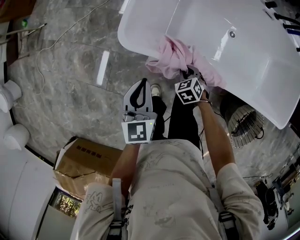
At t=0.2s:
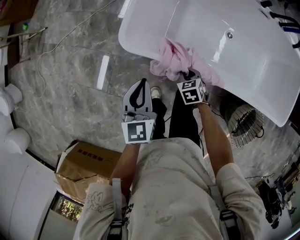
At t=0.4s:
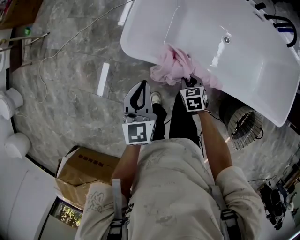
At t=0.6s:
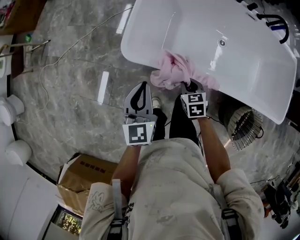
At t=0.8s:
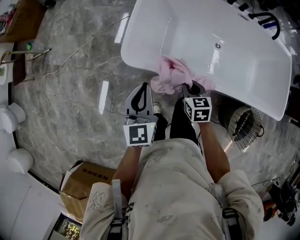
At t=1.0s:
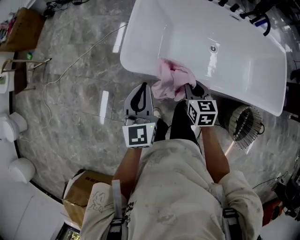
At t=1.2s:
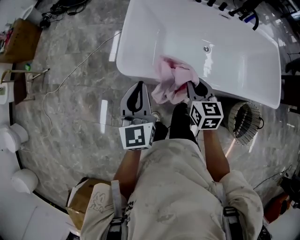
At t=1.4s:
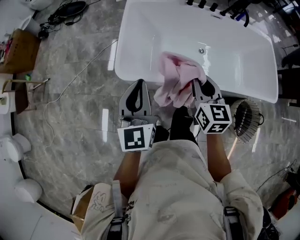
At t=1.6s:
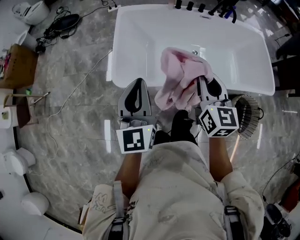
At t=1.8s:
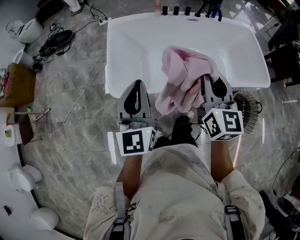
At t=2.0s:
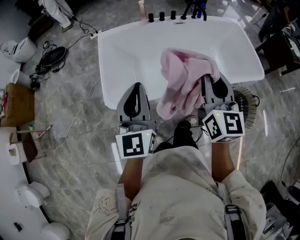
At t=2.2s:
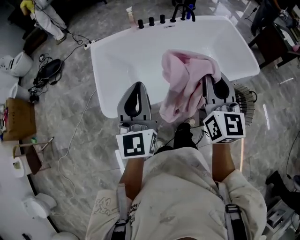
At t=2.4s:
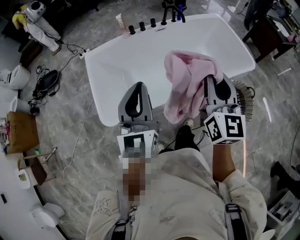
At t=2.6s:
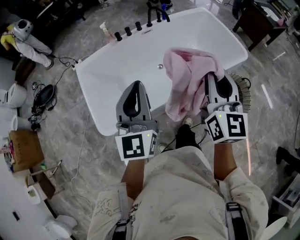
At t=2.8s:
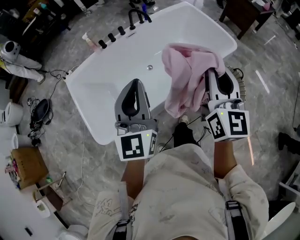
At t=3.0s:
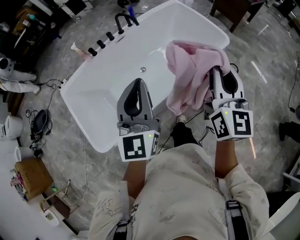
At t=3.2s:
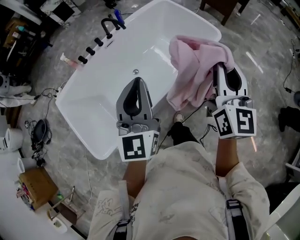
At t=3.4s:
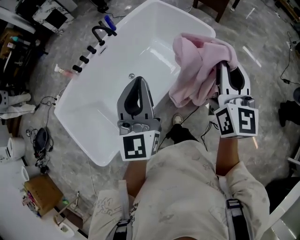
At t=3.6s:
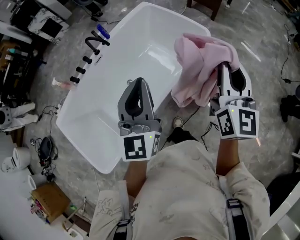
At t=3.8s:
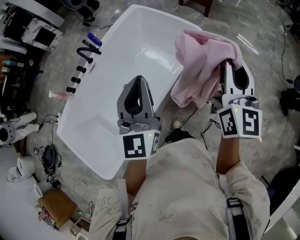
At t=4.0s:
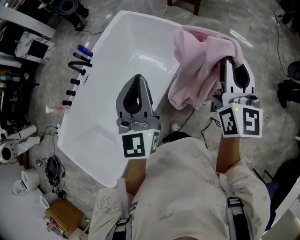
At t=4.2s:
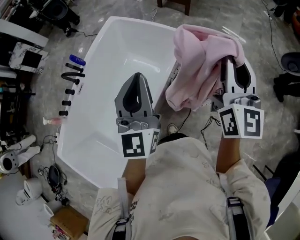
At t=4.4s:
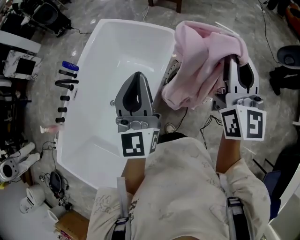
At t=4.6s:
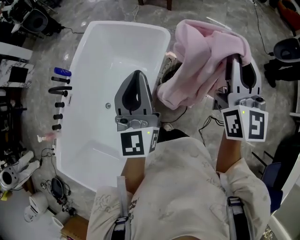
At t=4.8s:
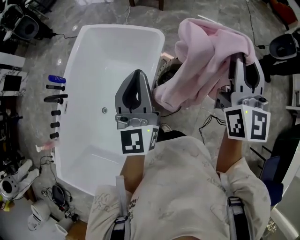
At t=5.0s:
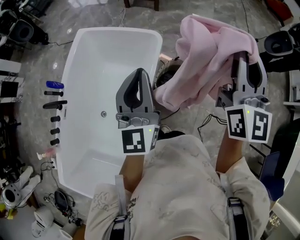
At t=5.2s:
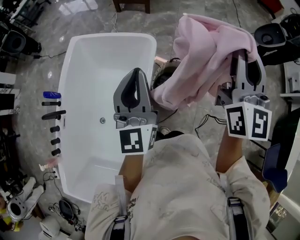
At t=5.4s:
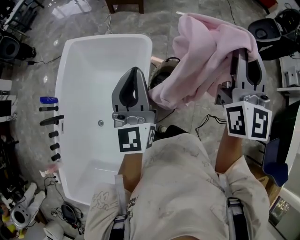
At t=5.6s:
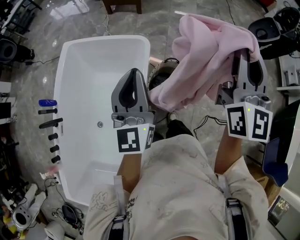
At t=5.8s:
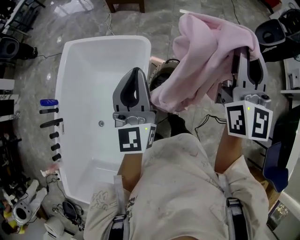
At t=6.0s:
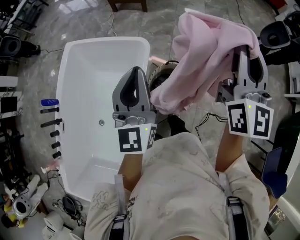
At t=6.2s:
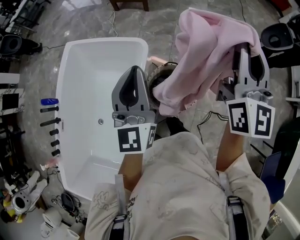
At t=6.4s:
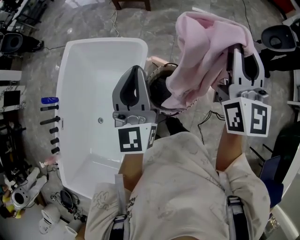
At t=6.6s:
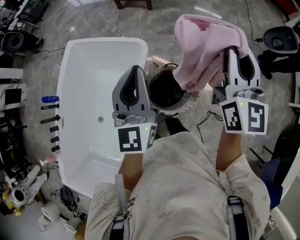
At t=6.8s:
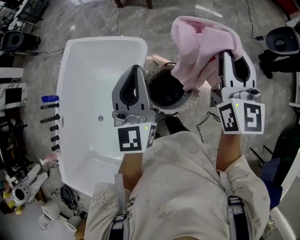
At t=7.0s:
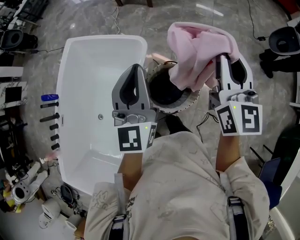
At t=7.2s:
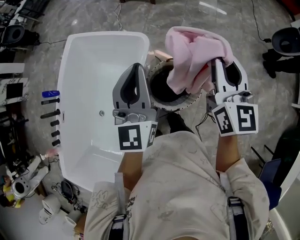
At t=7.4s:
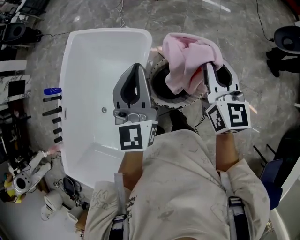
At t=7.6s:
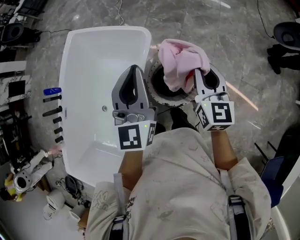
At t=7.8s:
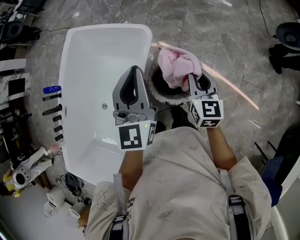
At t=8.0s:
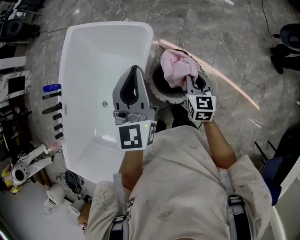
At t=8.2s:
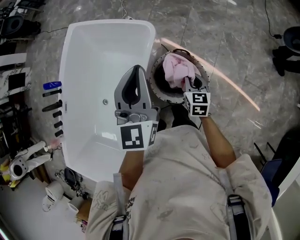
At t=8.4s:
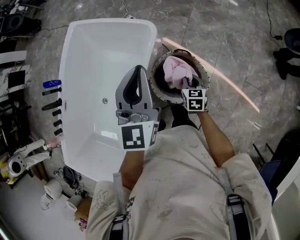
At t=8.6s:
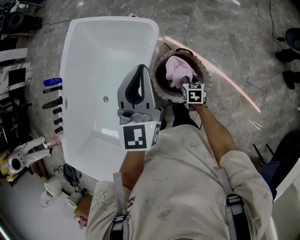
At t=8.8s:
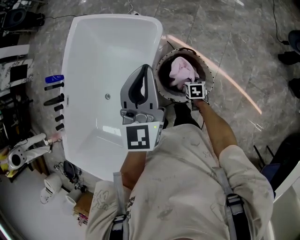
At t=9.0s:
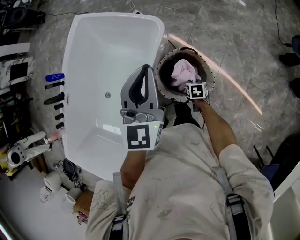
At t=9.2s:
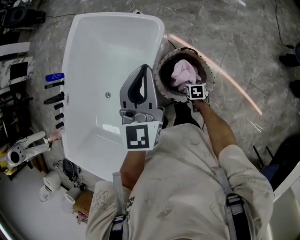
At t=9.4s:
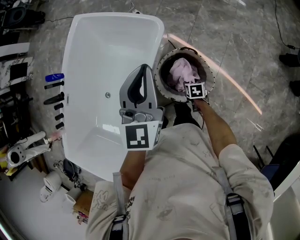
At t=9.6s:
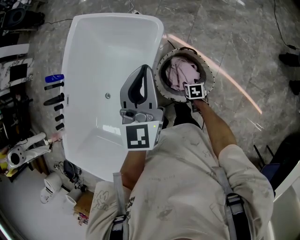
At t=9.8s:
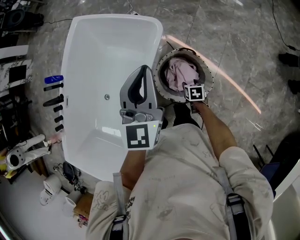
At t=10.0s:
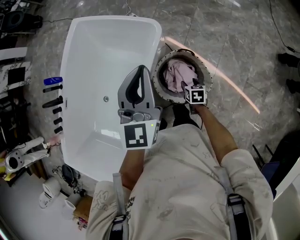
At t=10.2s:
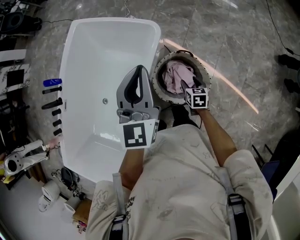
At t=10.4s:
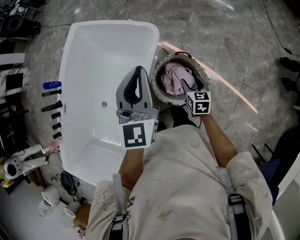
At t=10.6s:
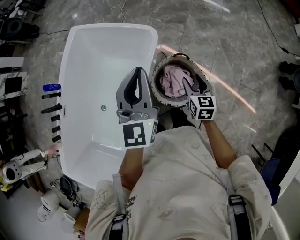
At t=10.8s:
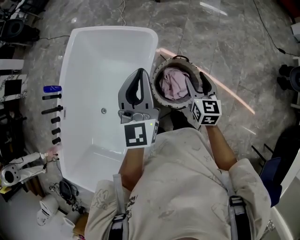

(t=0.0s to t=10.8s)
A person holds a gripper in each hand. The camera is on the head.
t=0.0s - t=1.6s: The left gripper is displaced upward by about 25 cm, and turns by some 30 degrees. Meanwhile the right gripper heads upward, covering roughly 50 cm, and tips its fingers upward by about 50 degrees.
t=1.6s - t=3.0s: The left gripper ends up roughly 35 cm from where it was, and changes its angle by approximately 40 degrees. The right gripper shifts by about 40 cm, and swivels about 50 degrees.
t=3.0s - t=4.6s: The left gripper moves about 40 cm, and changes its angle by some 30 degrees. The right gripper changes place by about 35 cm, and swivels about 30 degrees.
t=4.6s - t=6.2s: Both grippers travel together forward and to the right, approximately 15 cm.
t=6.2s - t=7.8s: The left gripper heads downward, covering roughly 5 cm; the right gripper moves downward, approximately 30 cm, and points its fingers approximately 30 degrees further downward.
t=7.8s - t=9.2s: The right gripper heads downward, covering about 35 cm, and tilts its fingers some 50 degrees downward.
t=9.2s - t=10.8s: The right gripper shifts some 30 cm upward, points its fingers roughly 40 degrees further upward, and opens, while the left gripper moves approximately 5 cm.

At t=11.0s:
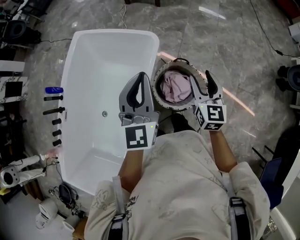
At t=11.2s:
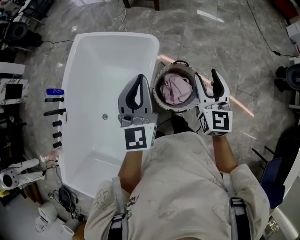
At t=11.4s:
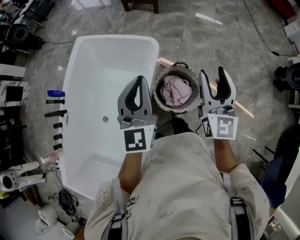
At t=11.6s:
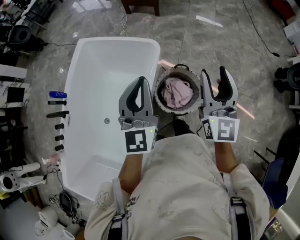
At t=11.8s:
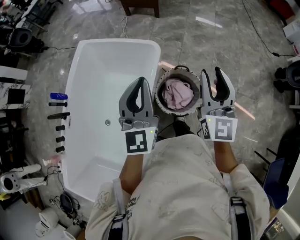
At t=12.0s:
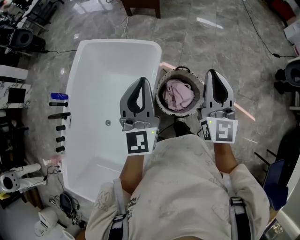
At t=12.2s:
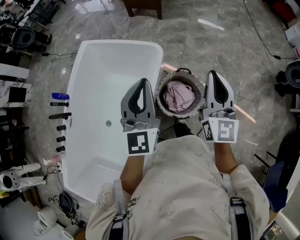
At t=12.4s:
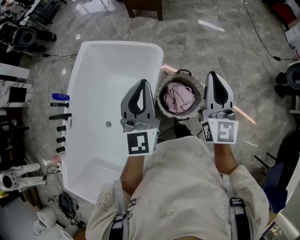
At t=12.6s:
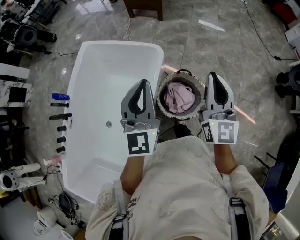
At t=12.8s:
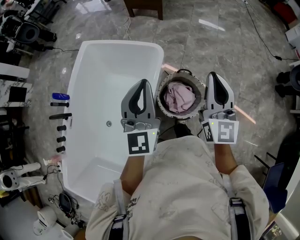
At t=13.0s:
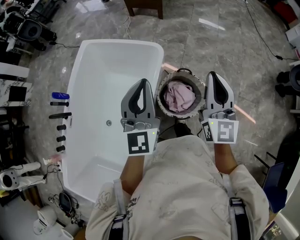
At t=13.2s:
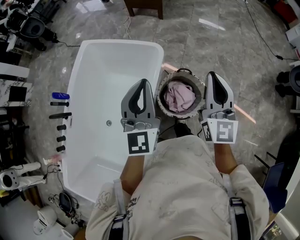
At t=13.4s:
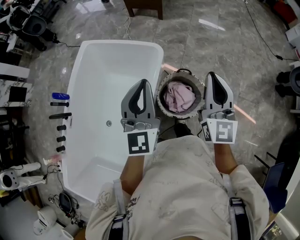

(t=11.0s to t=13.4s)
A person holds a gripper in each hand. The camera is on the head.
t=11.0s - t=12.2s: The right gripper moves upward, roughly 15 cm, changes its angle by approximately 20 degrees, and closes.
t=12.2s - t=13.4s: Both grippers stay put.

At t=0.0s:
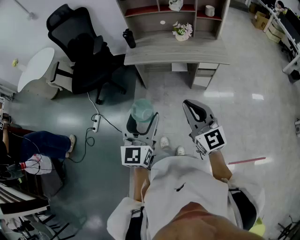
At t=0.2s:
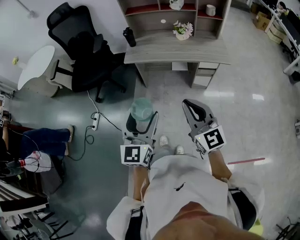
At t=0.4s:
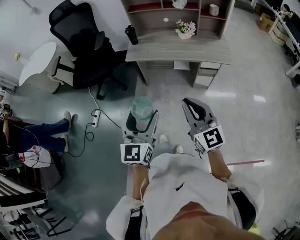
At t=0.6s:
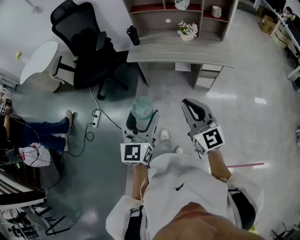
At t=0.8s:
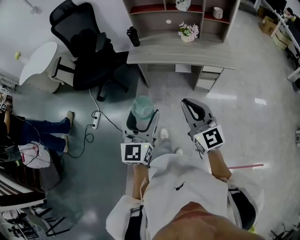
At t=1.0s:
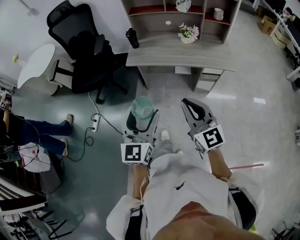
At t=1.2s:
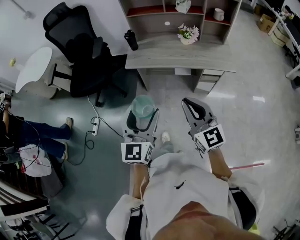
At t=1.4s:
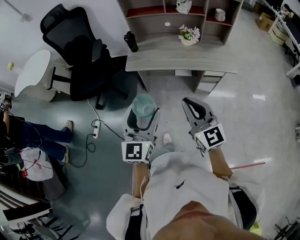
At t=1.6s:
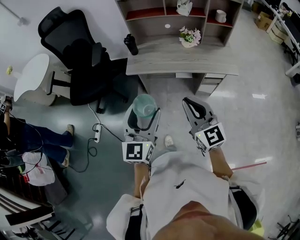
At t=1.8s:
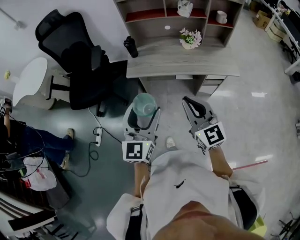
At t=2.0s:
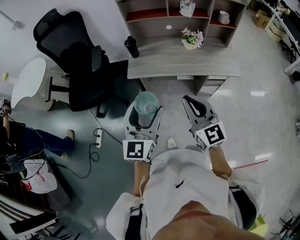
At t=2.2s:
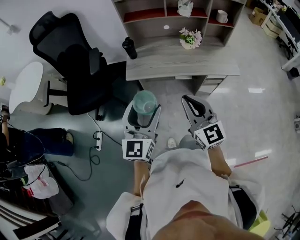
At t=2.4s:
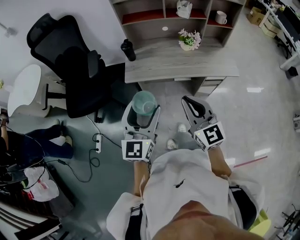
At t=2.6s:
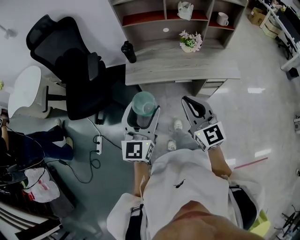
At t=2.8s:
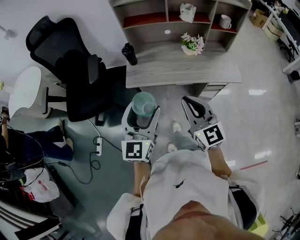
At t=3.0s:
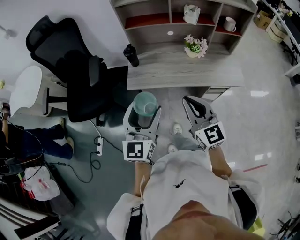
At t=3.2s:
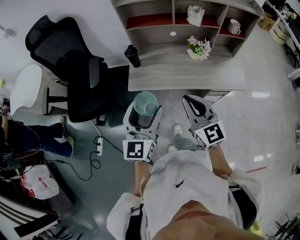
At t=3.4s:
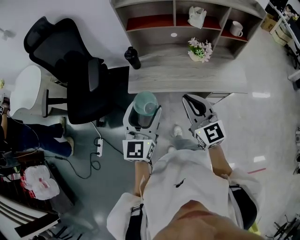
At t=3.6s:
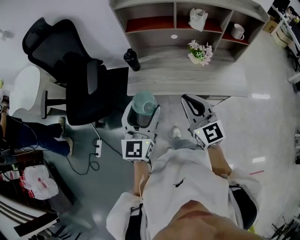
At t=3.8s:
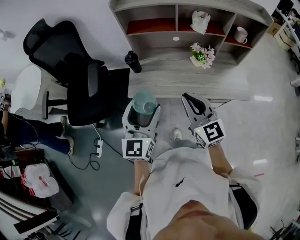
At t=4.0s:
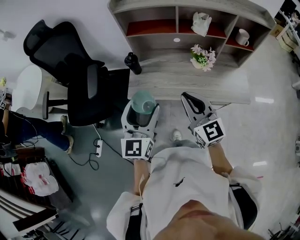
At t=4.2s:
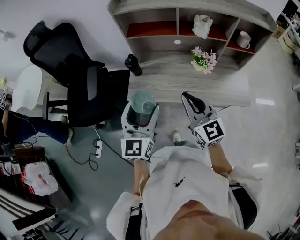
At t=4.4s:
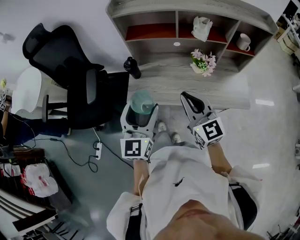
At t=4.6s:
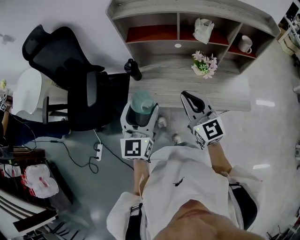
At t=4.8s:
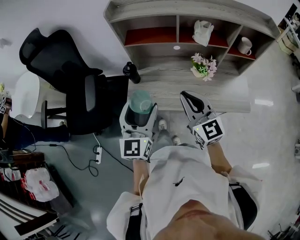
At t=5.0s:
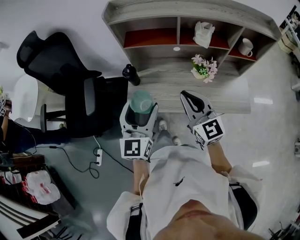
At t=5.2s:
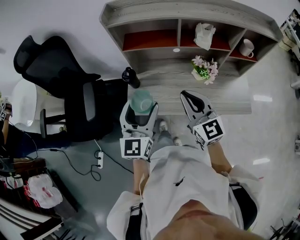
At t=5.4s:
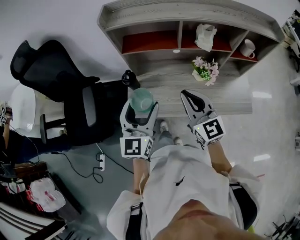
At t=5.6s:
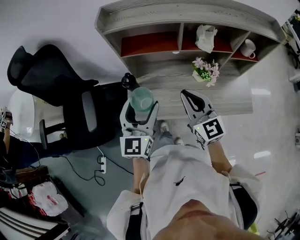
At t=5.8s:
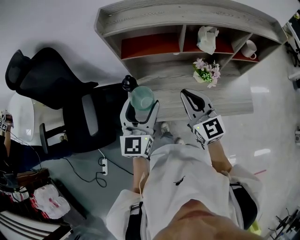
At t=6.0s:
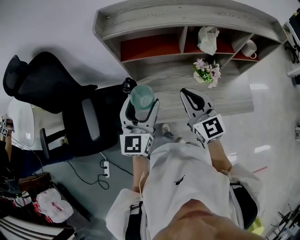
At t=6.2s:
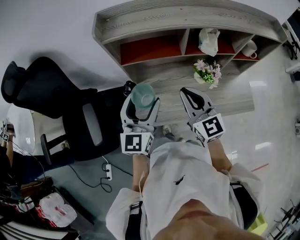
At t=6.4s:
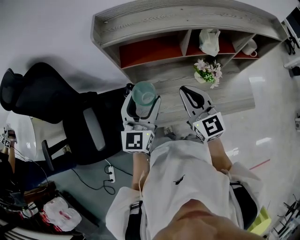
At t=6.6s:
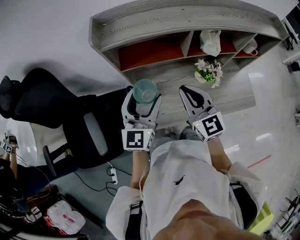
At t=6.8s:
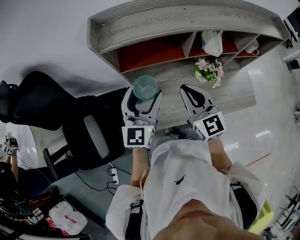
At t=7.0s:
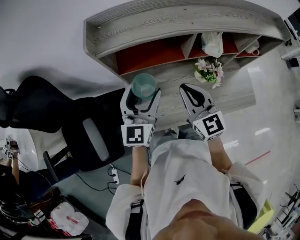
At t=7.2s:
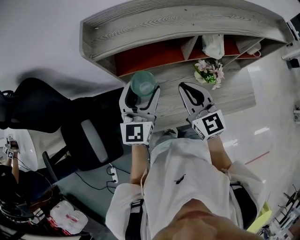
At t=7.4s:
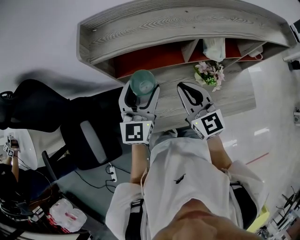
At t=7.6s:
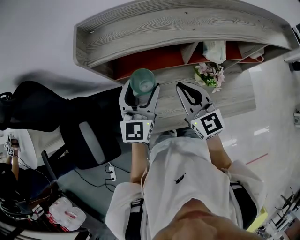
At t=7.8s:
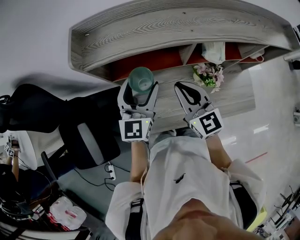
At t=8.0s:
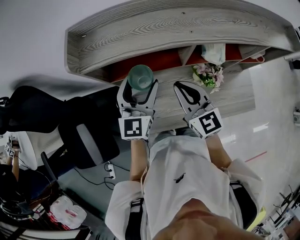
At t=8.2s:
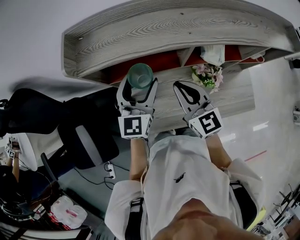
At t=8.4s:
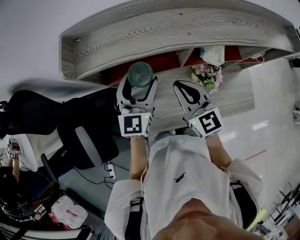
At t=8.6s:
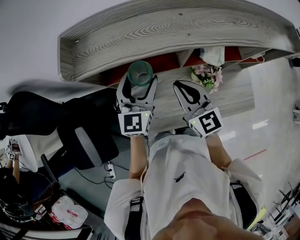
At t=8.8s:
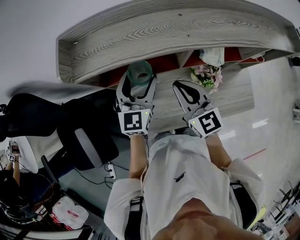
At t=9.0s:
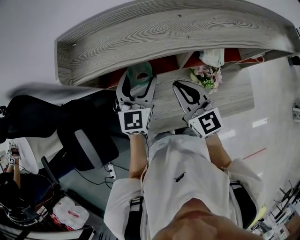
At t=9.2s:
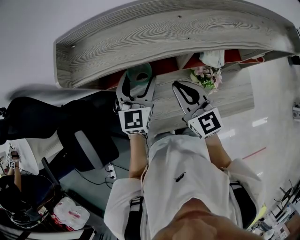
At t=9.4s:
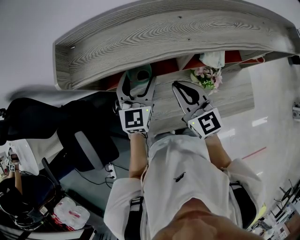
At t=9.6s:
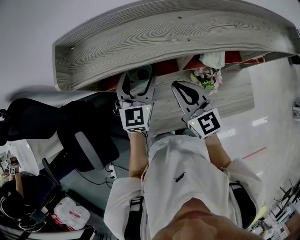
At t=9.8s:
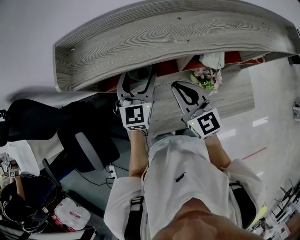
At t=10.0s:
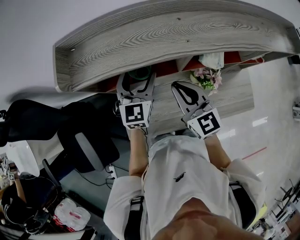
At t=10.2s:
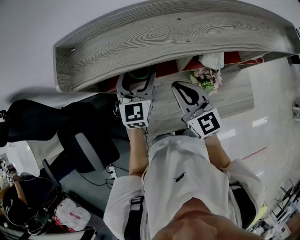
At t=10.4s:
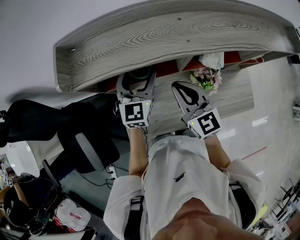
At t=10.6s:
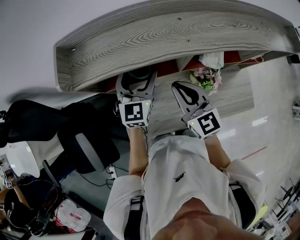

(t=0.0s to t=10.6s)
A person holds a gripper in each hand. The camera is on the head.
t=0.0s - t=1.6s: Both grippers travel together forward, roughly 15 cm.
t=1.6s - t=3.0s: Both grippers move forward, approximately 15 cm.
t=3.0s - t=4.6s: Both grippers travel together forward, about 15 cm.
t=4.6s - t=6.0s: The two grippers go roughly 15 cm forward.
t=6.0s - t=7.6s: Both grippers travel together forward, some 15 cm.
t=7.6s - t=9.0s: The left gripper moves forward, some 5 cm.
t=9.0s - t=10.6s: The grippers make only small movements.
